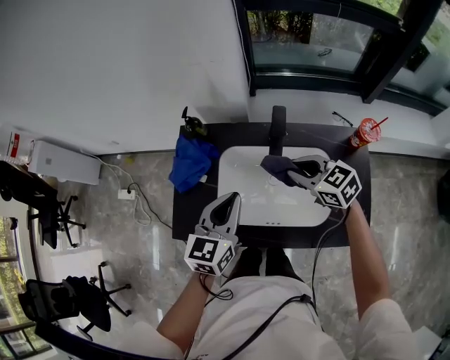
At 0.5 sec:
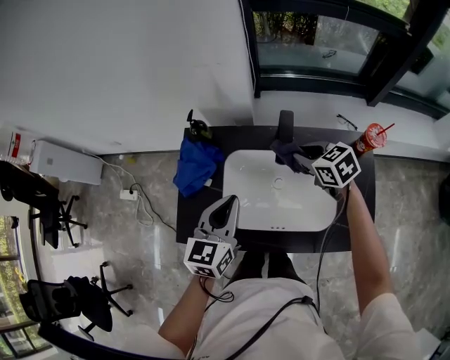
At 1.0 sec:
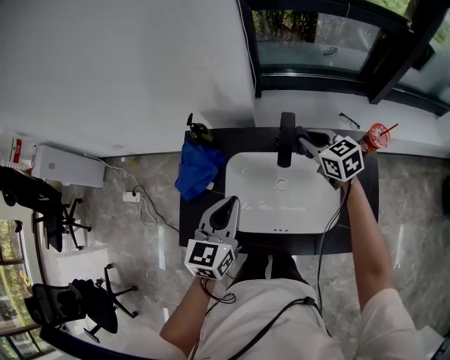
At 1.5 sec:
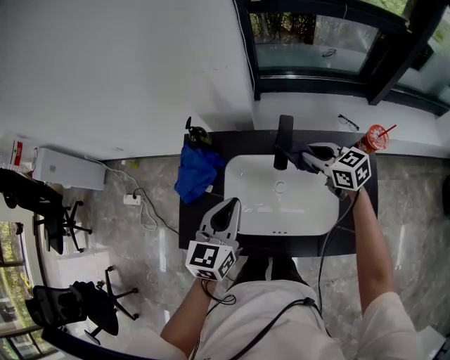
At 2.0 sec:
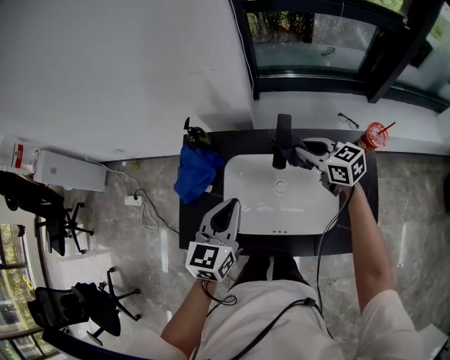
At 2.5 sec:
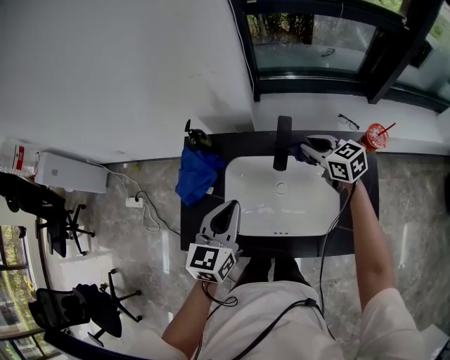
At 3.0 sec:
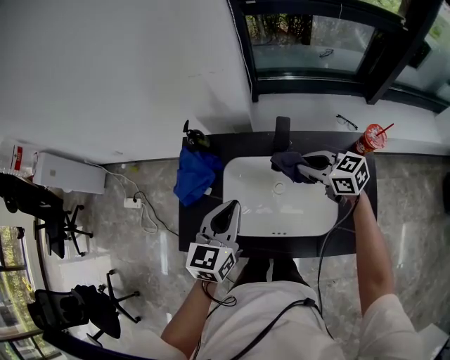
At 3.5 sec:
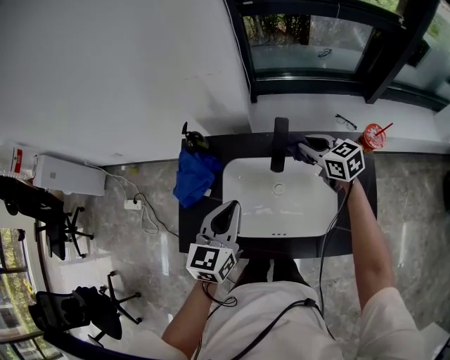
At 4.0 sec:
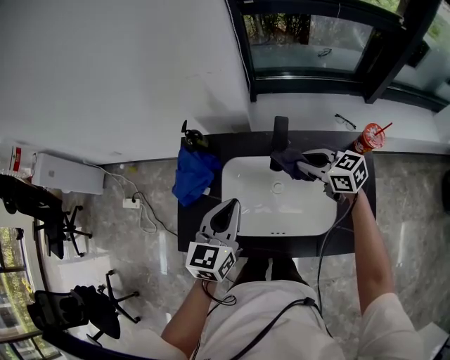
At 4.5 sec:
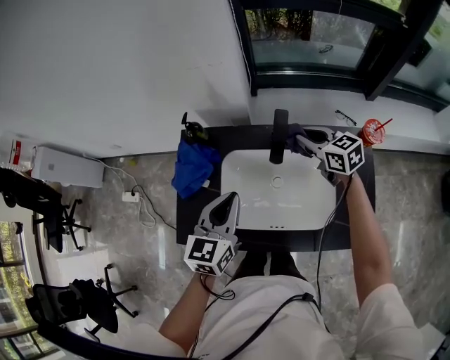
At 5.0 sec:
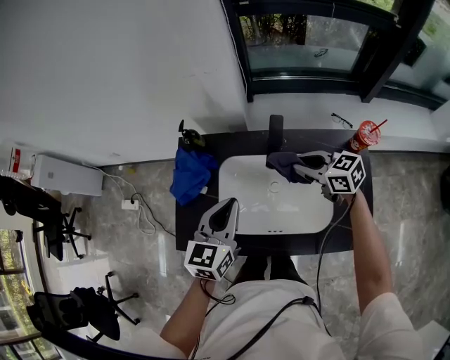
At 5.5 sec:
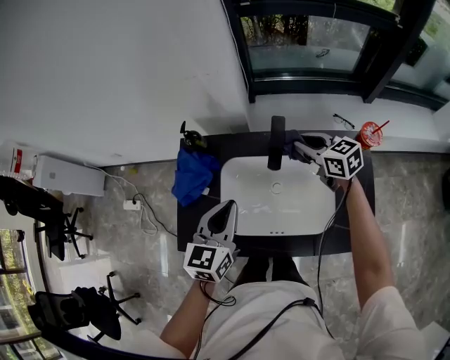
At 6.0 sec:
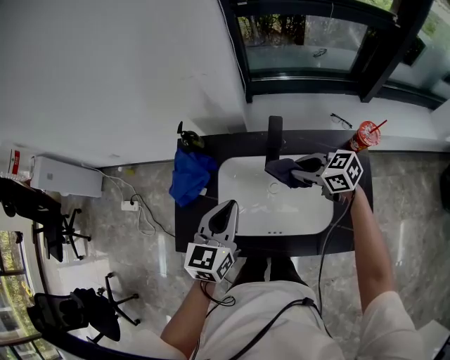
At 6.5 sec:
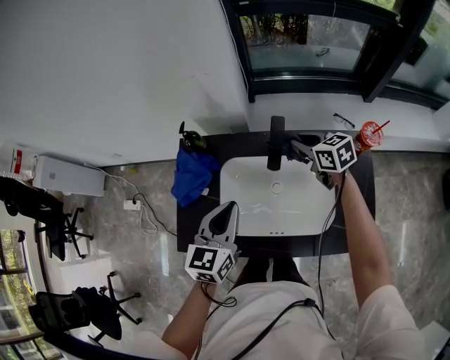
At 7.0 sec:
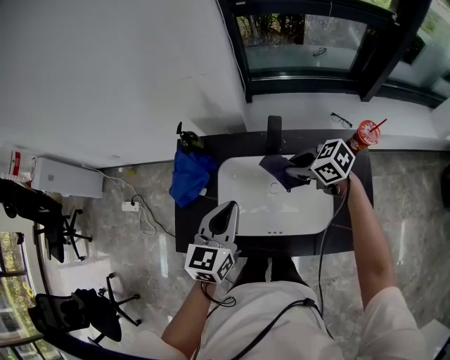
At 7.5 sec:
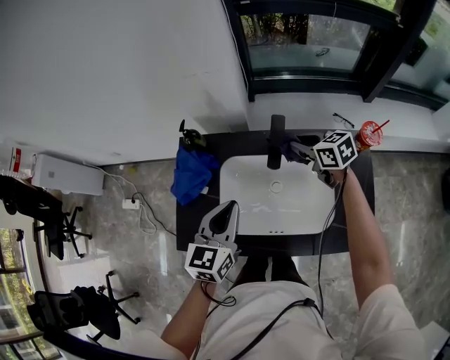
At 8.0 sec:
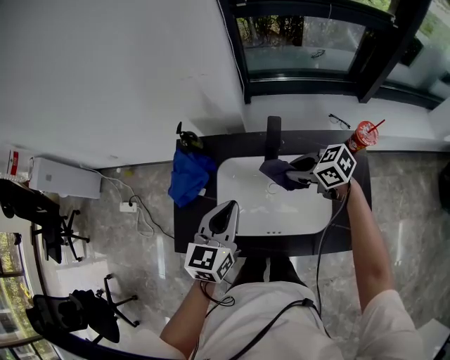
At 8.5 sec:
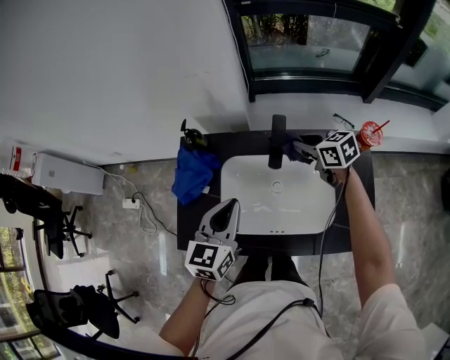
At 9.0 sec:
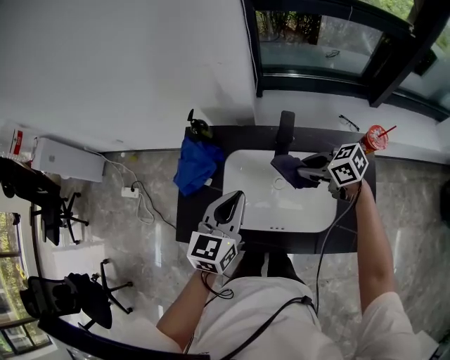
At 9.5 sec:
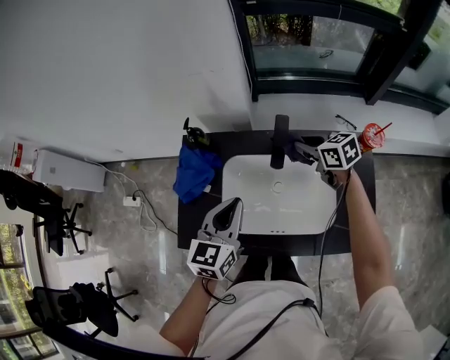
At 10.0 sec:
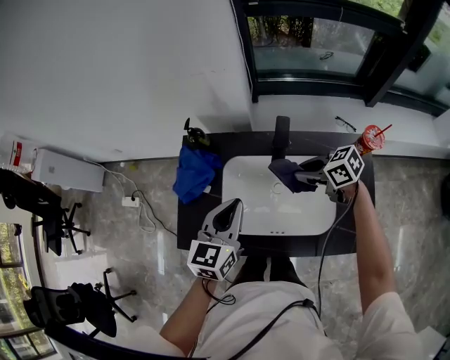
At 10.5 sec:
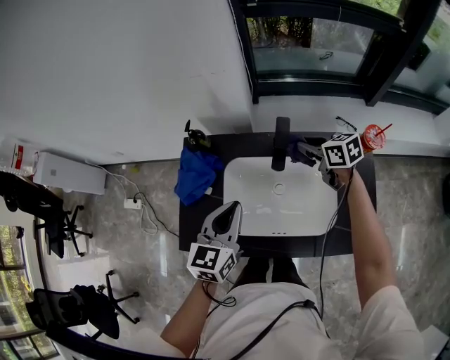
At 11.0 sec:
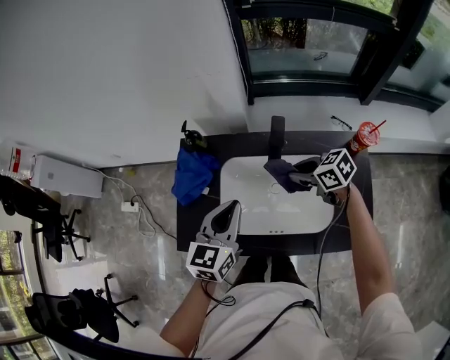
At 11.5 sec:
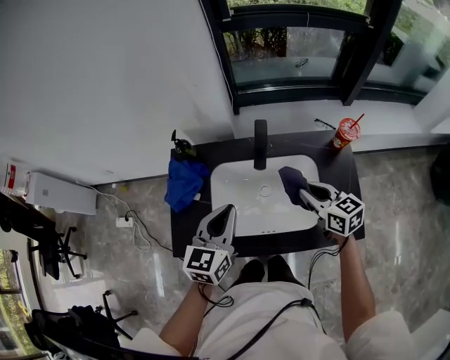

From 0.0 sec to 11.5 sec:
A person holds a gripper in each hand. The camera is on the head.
From 0.0 sec to 2.0 sec: The right gripper travels forward by about 10 cm.
From 2.0 sec to 4.0 sec: The right gripper goes forward and backward, approximately 5 cm each way, reversing 2 times.
From 4.0 sec to 6.0 sec: The right gripper goes forward and backward, about 10 cm each way, reversing 3 times.
From 6.0 sec to 7.5 sec: The right gripper moves forward and backward over roughly 10 cm, changing direction 2 times.
From 7.5 sec to 9.5 sec: The right gripper goes forward and backward, roughly 10 cm each way, reversing 3 times.
From 9.5 sec to 11.5 sec: The right gripper moves forward and backward over approximately 15 cm, changing direction 2 times.

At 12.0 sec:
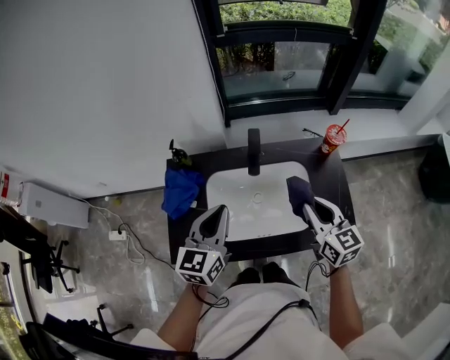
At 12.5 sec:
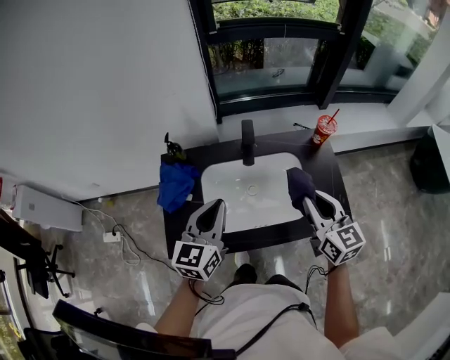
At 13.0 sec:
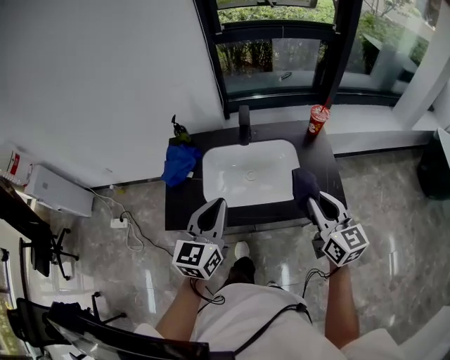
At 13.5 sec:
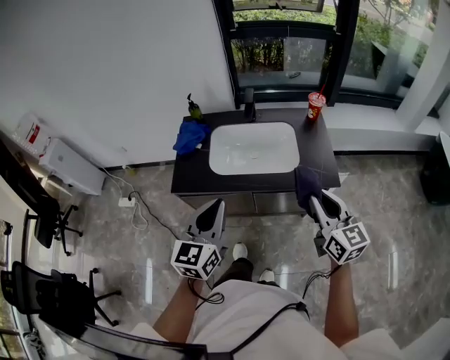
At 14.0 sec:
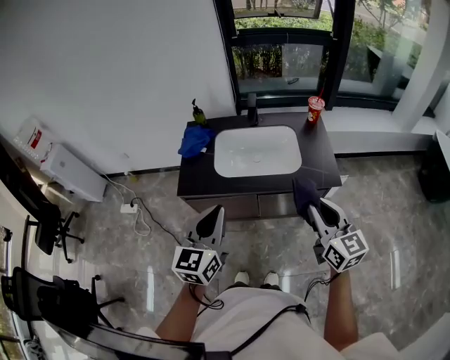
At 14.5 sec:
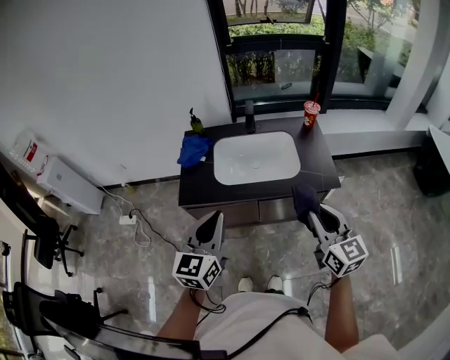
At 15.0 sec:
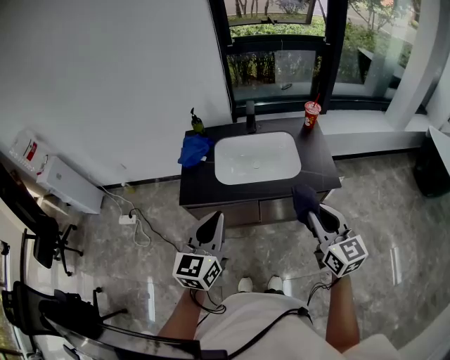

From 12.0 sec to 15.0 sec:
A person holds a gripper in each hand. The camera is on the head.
From 12.0 sec to 13.5 sec: The two grippers go about 30 cm backward.
From 13.5 sec to 15.0 sec: The right gripper shifts about 5 cm to the left and backward. Meanwhile the left gripper travels to the left by about 5 cm.

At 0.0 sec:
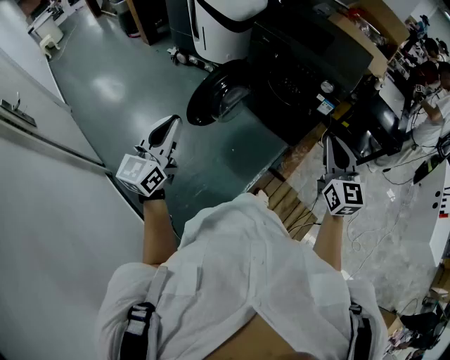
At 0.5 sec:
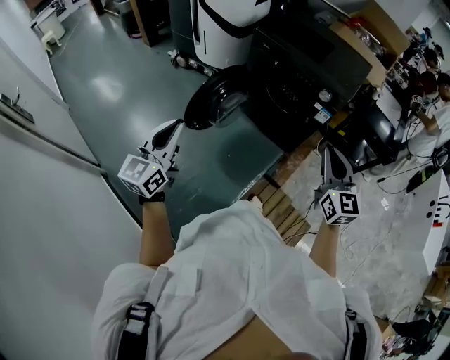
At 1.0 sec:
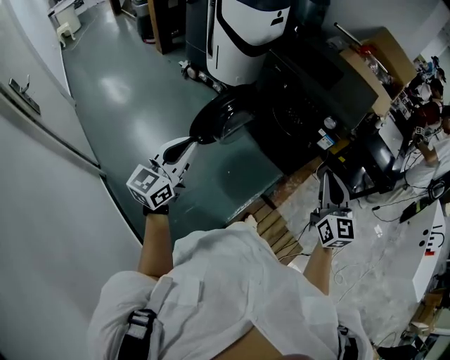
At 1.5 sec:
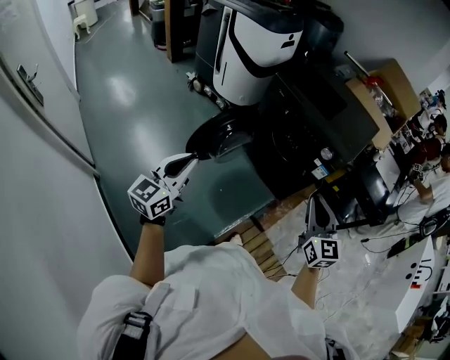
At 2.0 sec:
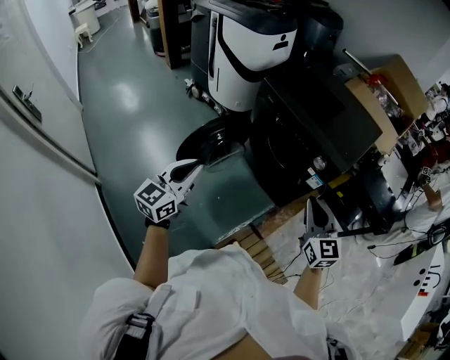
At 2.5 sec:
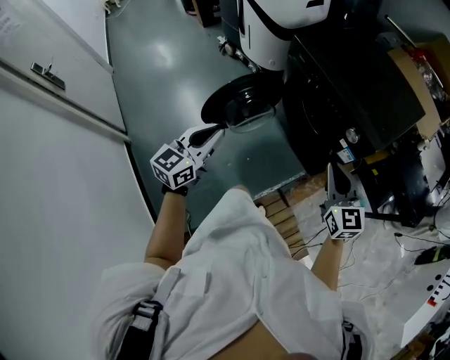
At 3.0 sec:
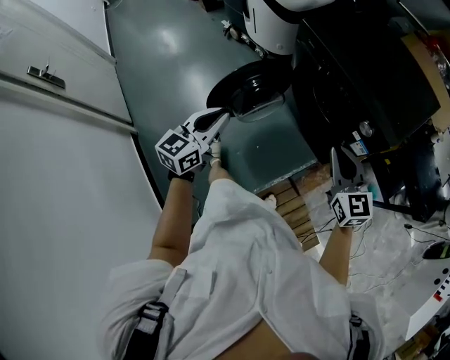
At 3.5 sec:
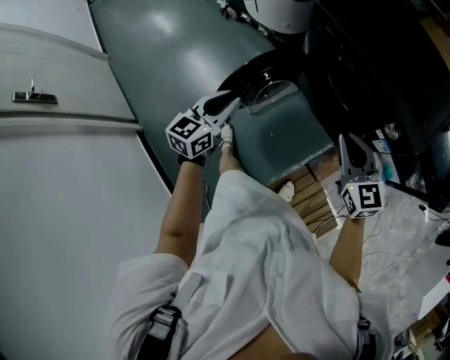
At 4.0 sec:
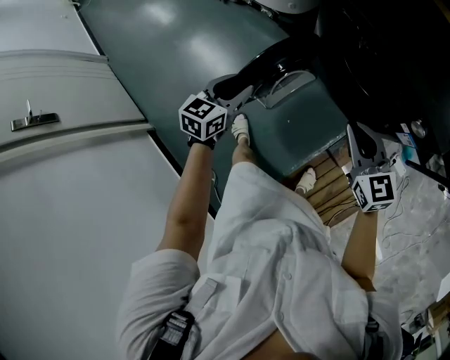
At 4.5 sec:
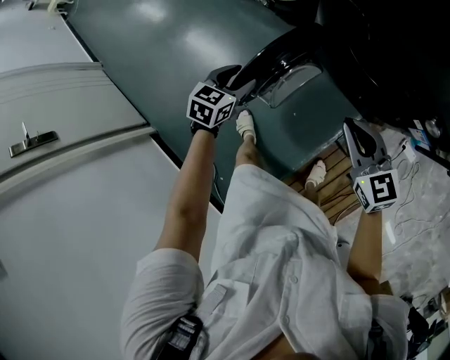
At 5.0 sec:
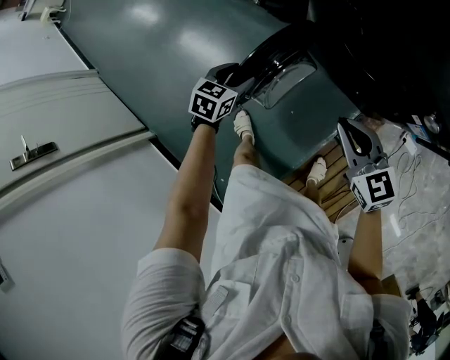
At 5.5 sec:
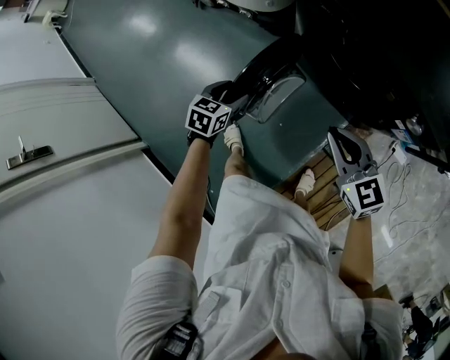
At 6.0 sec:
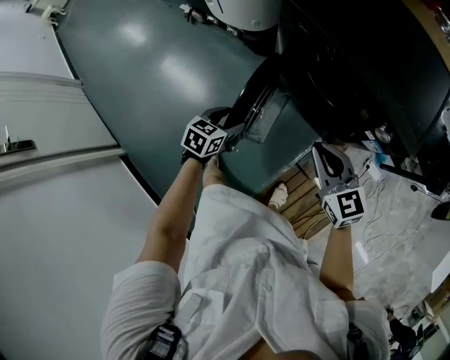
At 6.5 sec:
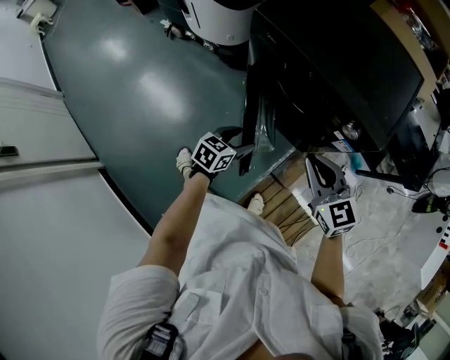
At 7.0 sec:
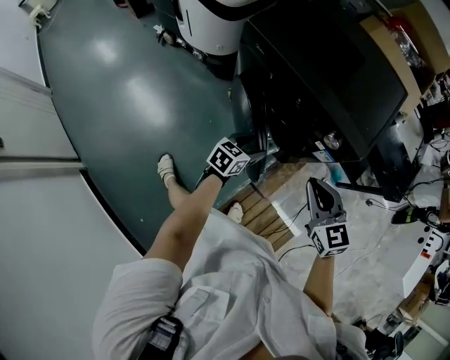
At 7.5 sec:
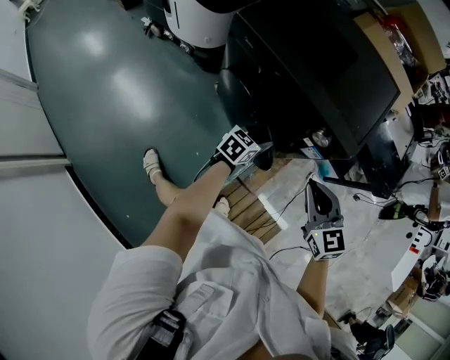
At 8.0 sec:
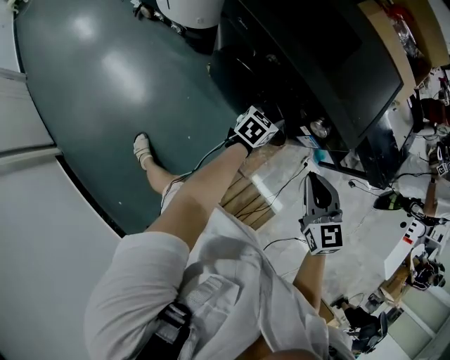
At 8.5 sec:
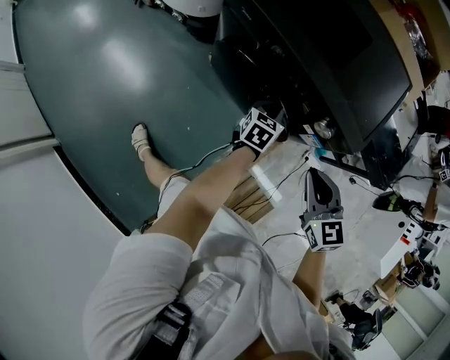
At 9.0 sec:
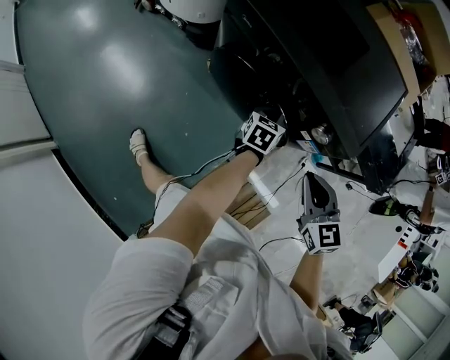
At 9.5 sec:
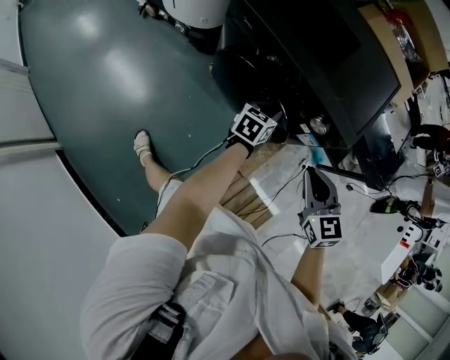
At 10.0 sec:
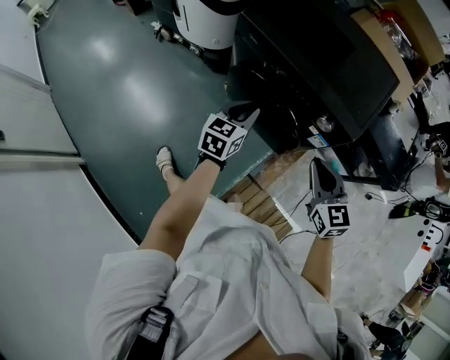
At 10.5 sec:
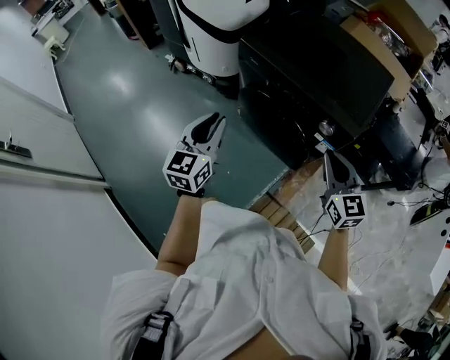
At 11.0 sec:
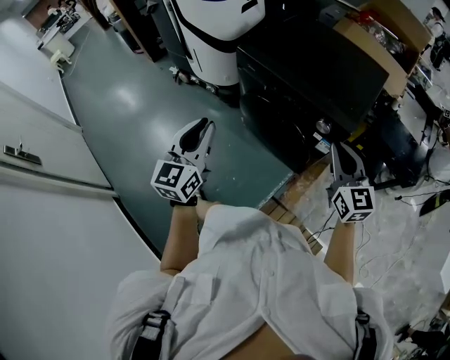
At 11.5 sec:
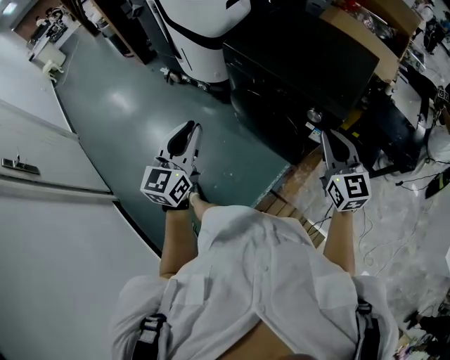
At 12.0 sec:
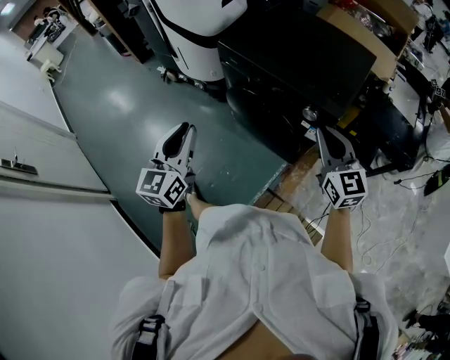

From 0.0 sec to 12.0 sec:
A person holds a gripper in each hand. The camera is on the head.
From 0.0 sec to 2.0 sec: The grippers both shift forward and to the right by some 15 cm.
From 2.0 sec to 4.0 sec: The left gripper heads forward and downward, covering roughly 30 cm, rotates roughly 30 degrees, and opens up, while the right gripper shifts roughly 30 cm forward, to the left and downward.
From 4.0 sec to 6.0 sec: The left gripper heads downward and to the right, covering roughly 15 cm, and opens up.
From 6.0 sec to 8.0 sec: The left gripper travels to the right and forward by about 35 cm. The right gripper moves to the right, approximately 20 cm.
From 8.0 sec to 10.0 sec: The left gripper travels upward, to the left and backward by about 20 cm, turns by about 20 degrees, and closes.
From 10.0 sec to 12.0 sec: The left gripper moves upward, backward and to the left, about 25 cm, and rotates some 20 degrees. Meanwhile the right gripper goes some 10 cm upward.
